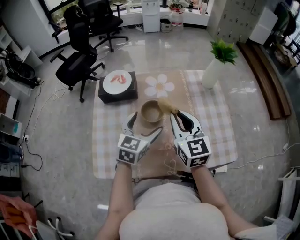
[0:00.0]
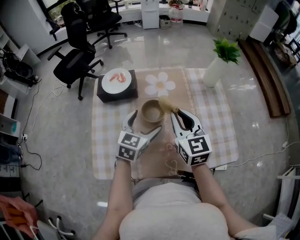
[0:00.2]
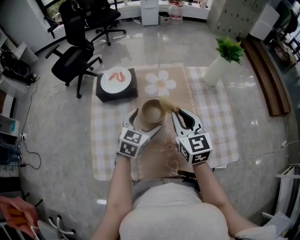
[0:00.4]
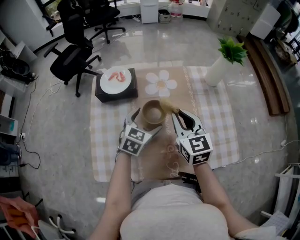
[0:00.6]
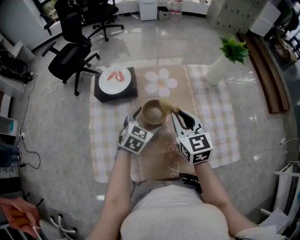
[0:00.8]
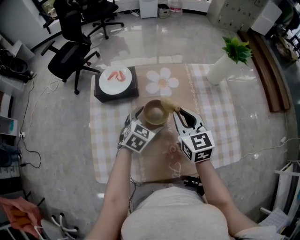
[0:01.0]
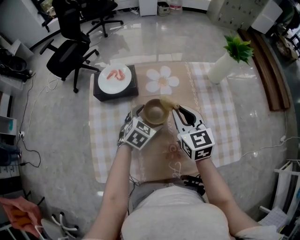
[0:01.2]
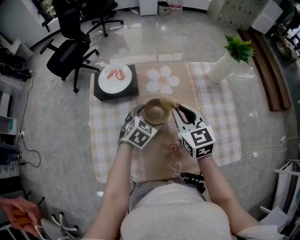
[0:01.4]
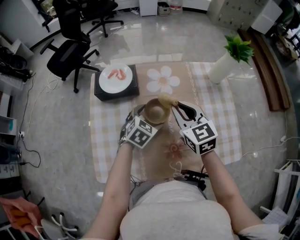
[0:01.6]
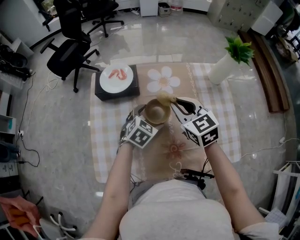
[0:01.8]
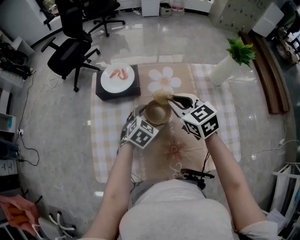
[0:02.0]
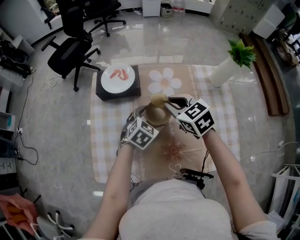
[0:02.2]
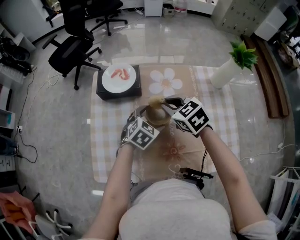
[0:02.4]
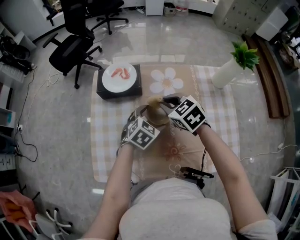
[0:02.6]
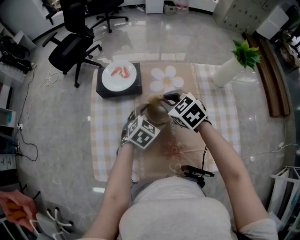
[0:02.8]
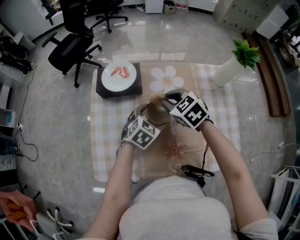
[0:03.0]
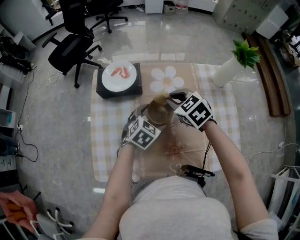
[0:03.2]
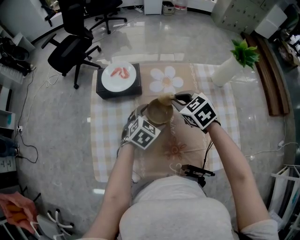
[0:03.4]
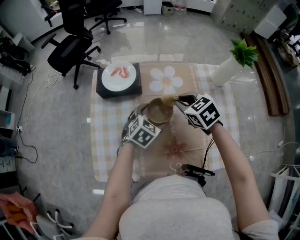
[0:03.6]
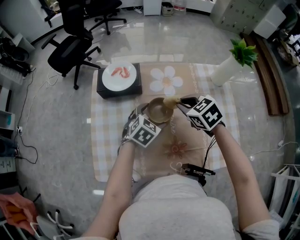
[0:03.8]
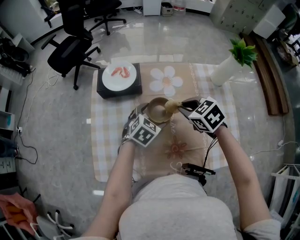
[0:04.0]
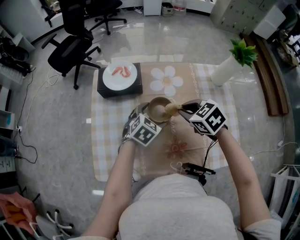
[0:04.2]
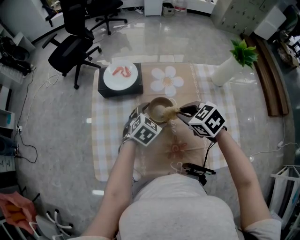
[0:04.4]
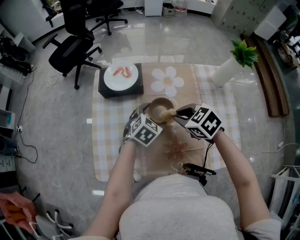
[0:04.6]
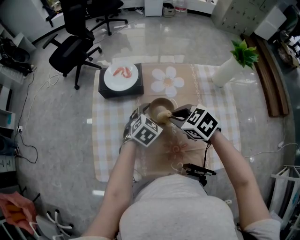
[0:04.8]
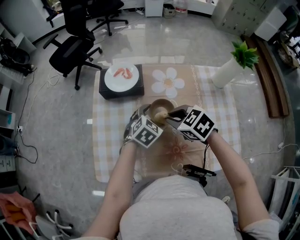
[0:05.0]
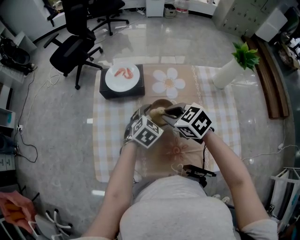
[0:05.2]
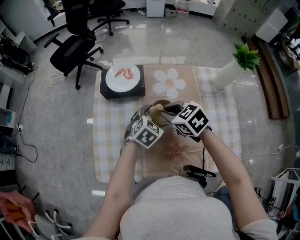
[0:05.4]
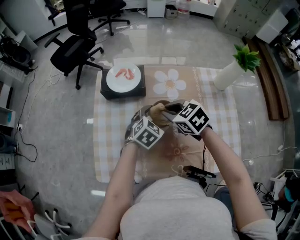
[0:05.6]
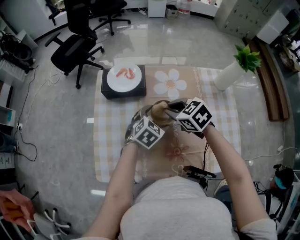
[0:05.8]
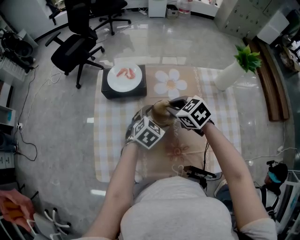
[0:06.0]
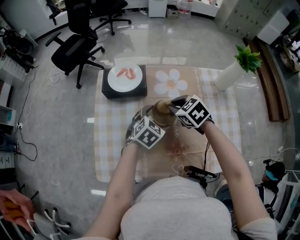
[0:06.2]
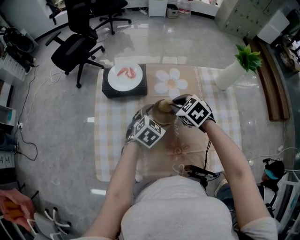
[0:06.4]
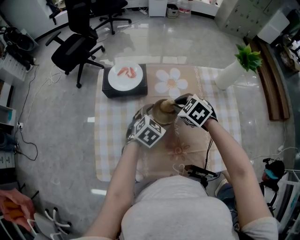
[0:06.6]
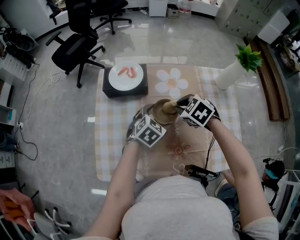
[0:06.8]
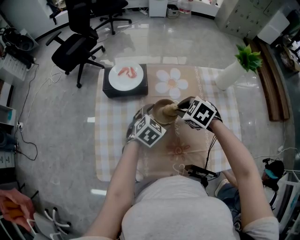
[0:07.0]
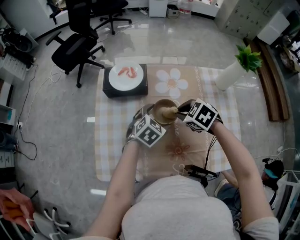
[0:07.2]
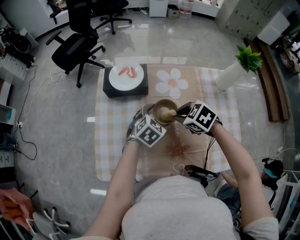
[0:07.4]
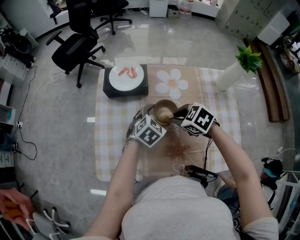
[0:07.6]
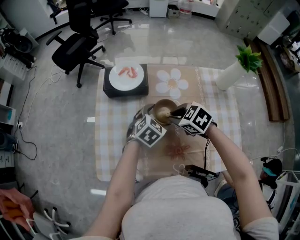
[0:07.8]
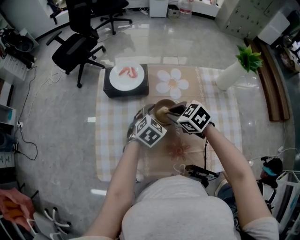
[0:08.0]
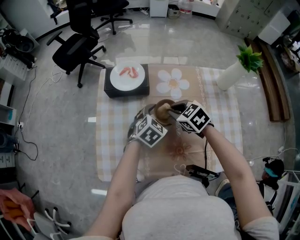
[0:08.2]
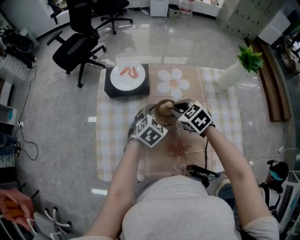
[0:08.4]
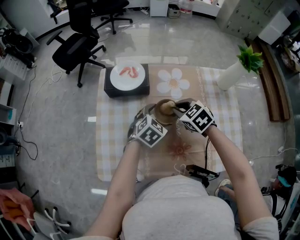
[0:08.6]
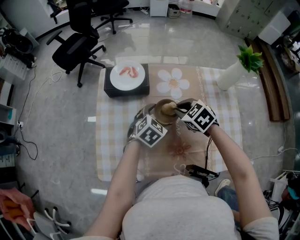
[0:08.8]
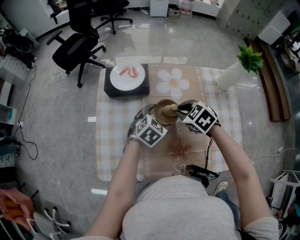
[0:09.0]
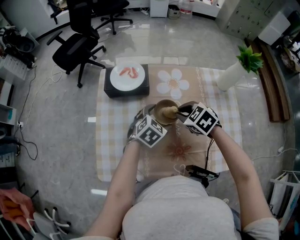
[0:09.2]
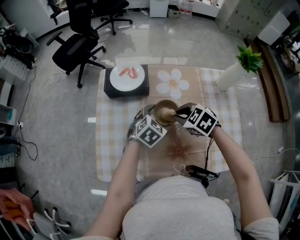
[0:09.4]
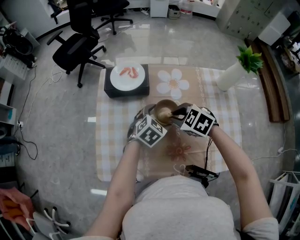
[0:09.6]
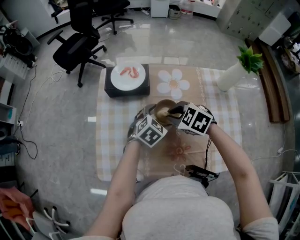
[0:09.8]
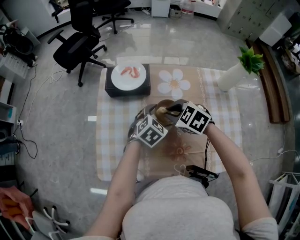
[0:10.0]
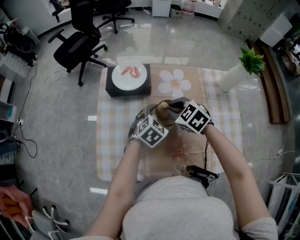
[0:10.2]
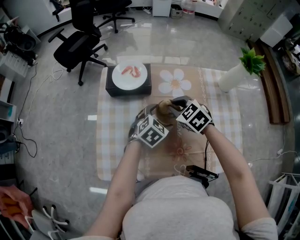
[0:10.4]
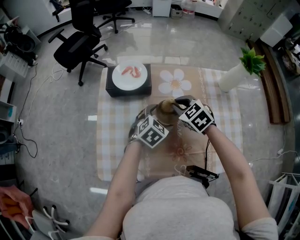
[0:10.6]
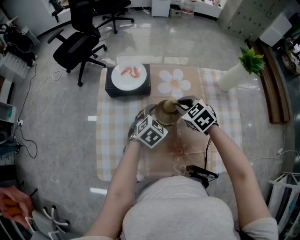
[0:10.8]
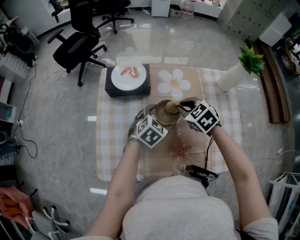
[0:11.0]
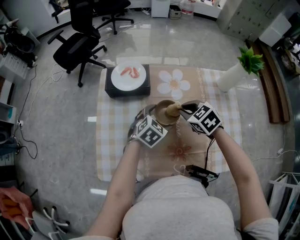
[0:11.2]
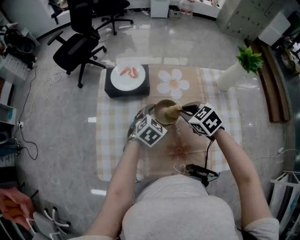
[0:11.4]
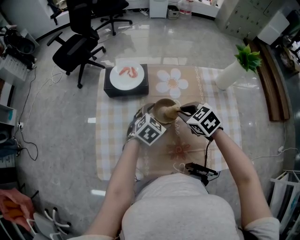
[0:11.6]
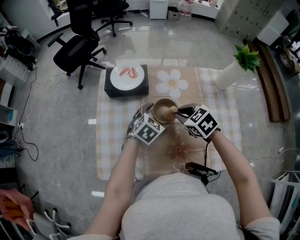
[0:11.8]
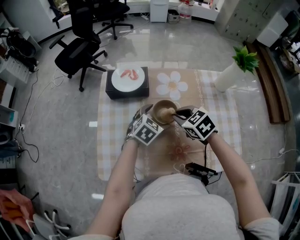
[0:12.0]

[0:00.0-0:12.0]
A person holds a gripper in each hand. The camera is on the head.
0:00.0 to 0:01.6: The left gripper heads downward and forward, covering approximately 15 cm, and rotates some 30 degrees, while the right gripper shifts some 10 cm forward and downward.
0:01.6 to 0:03.0: The right gripper is displaced to the left and downward by roughly 5 cm, and changes its angle by about 30 degrees.
0:03.0 to 0:04.4: The right gripper travels backward by approximately 5 cm.
0:04.4 to 0:06.0: The right gripper moves forward, roughly 5 cm.
0:06.0 to 0:07.6: The right gripper travels backward by some 5 cm.
0:07.6 to 0:10.4: The grippers stay close to where they were, moving slightly.
0:10.4 to 0:12.0: The right gripper ends up roughly 5 cm from where it was.

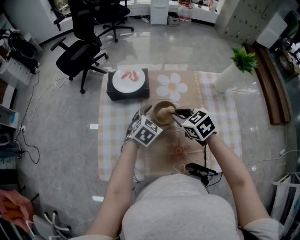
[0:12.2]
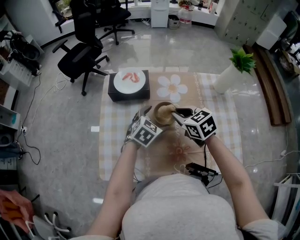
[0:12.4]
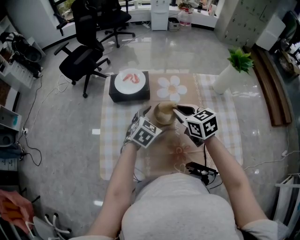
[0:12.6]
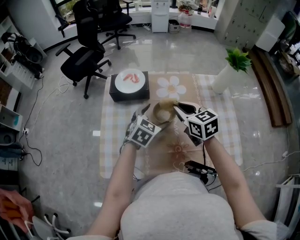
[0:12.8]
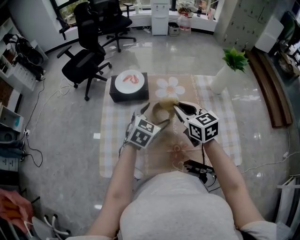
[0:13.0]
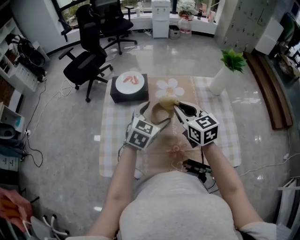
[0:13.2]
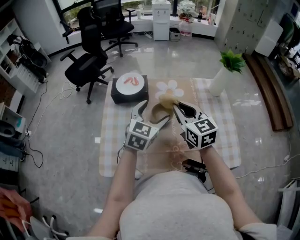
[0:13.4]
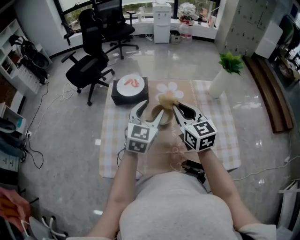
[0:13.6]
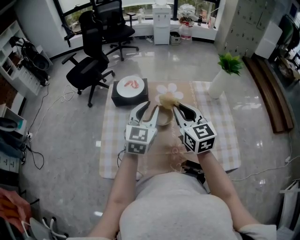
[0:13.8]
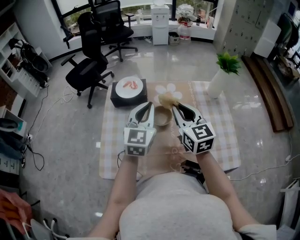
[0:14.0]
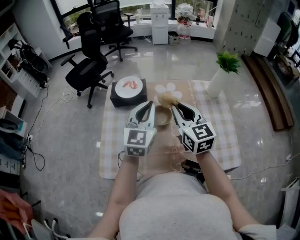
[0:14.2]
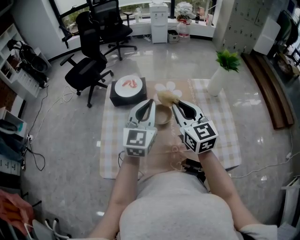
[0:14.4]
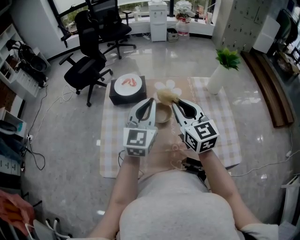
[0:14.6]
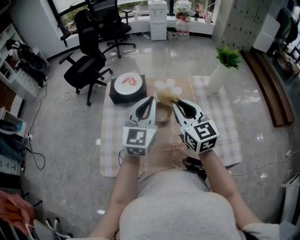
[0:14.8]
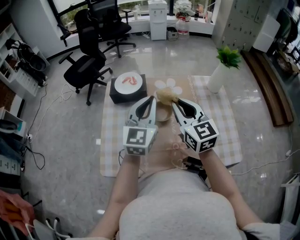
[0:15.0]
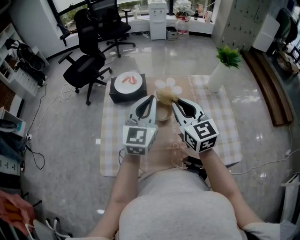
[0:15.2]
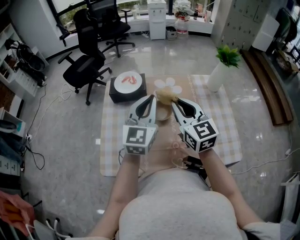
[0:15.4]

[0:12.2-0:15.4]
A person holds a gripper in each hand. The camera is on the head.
0:12.2 to 0:13.8: Both grippers move upward, some 15 cm. The left gripper angles its fingers upward, by about 30 degrees, and closes; the right gripper points its fingers roughly 40 degrees further upward.
0:13.8 to 0:15.4: The grippers make only small movements.

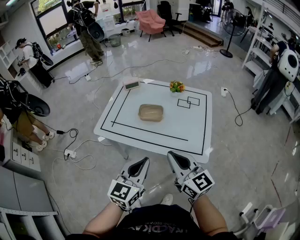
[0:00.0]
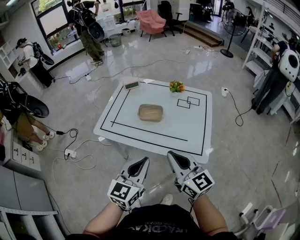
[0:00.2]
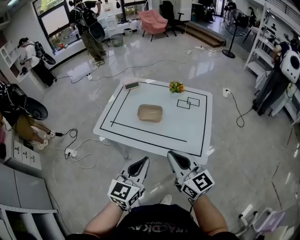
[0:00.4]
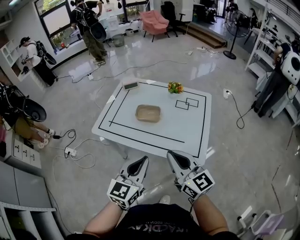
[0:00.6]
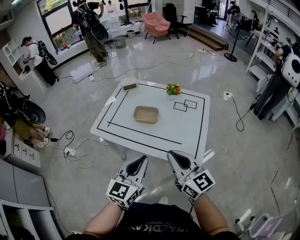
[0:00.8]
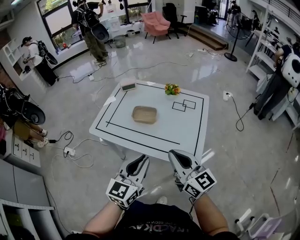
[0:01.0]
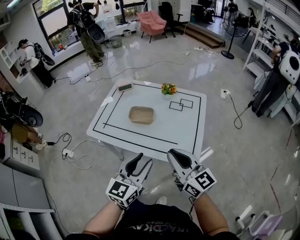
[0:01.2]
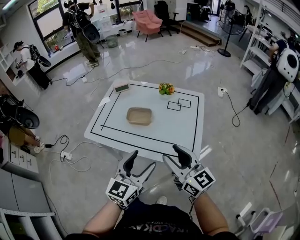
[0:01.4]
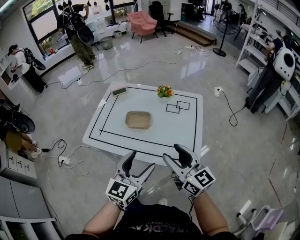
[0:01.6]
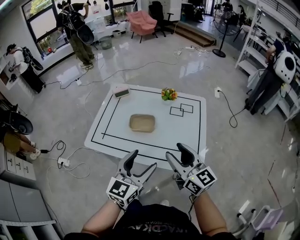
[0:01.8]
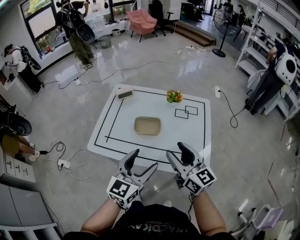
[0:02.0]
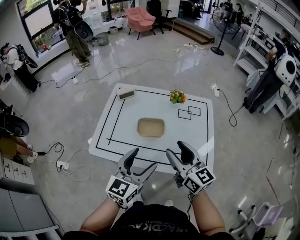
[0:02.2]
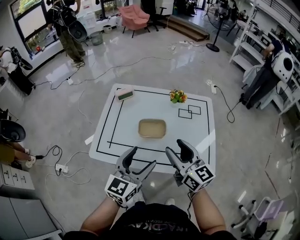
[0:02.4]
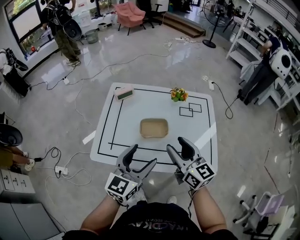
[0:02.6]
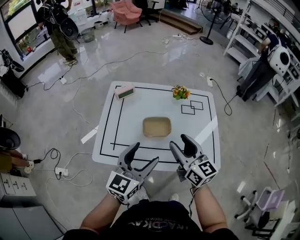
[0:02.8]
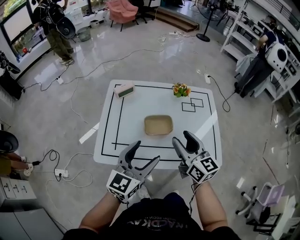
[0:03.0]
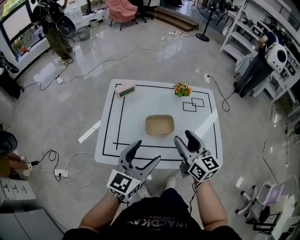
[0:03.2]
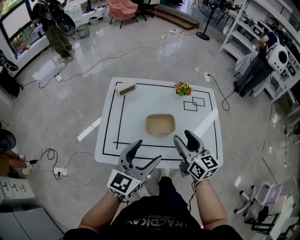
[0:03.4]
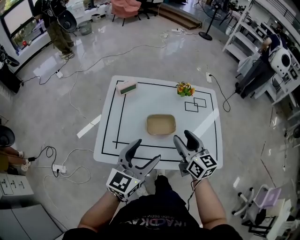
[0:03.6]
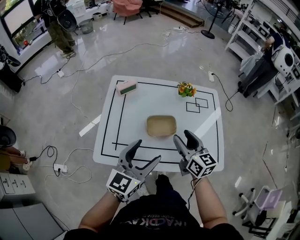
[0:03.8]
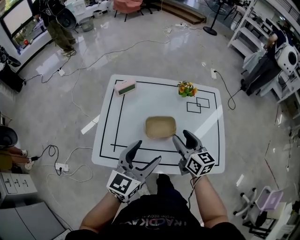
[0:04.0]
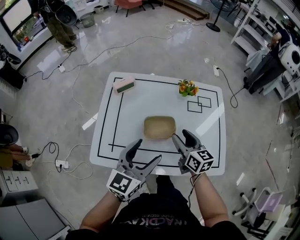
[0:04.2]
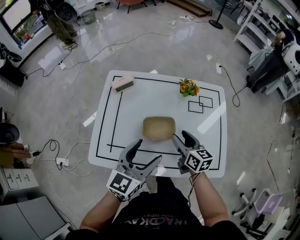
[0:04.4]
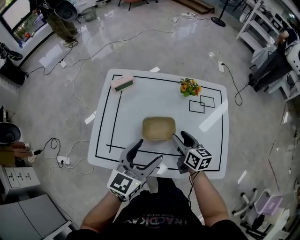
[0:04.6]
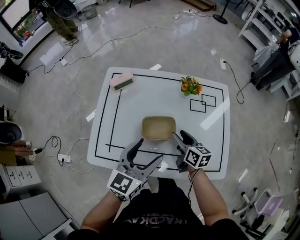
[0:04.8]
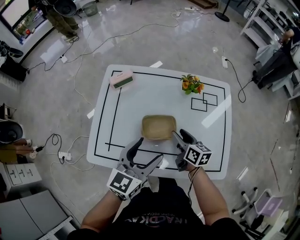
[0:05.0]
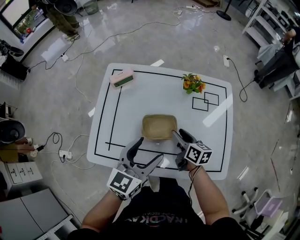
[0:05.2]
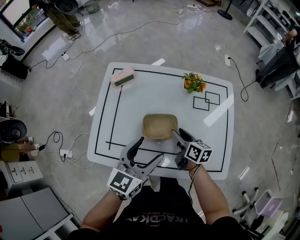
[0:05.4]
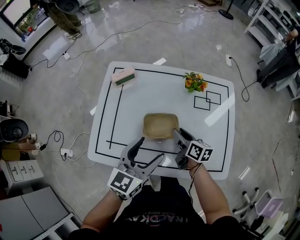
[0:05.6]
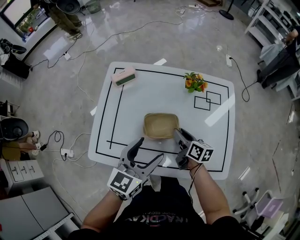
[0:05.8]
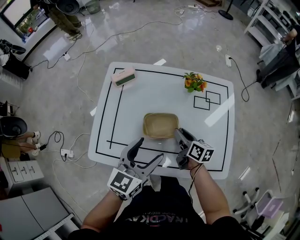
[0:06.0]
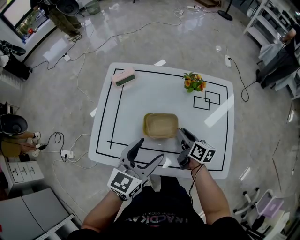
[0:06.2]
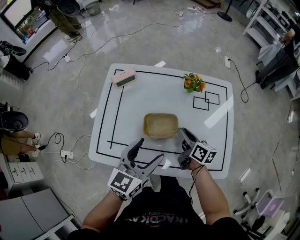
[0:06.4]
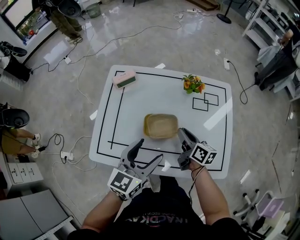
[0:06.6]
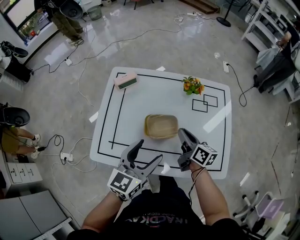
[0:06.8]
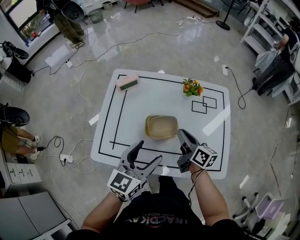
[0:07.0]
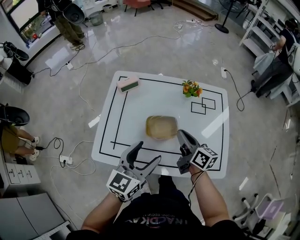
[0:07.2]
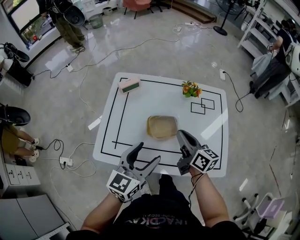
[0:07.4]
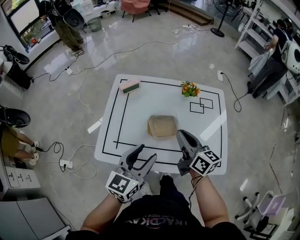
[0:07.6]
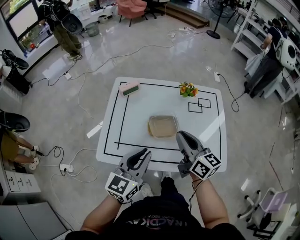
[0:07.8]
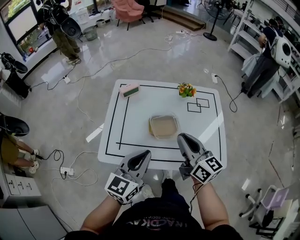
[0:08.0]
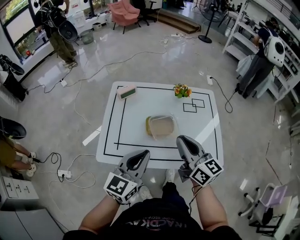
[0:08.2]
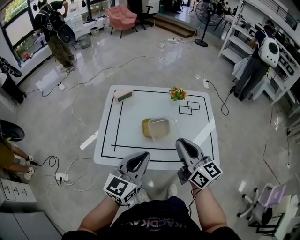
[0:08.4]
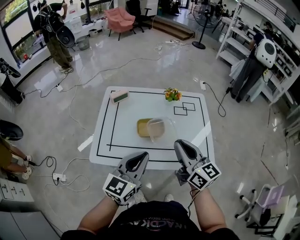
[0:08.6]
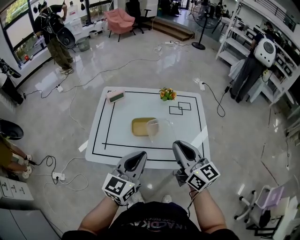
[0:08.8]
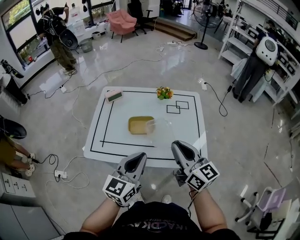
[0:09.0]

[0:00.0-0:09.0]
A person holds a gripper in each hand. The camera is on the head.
0:00.0 to 0:01.6: The grippers both shift to the right and forward by about 10 cm. The left gripper opens its fingers; the right gripper opens.
0:01.6 to 0:03.0: Both grippers travel together to the left and forward, some 20 cm. The right gripper rotates roughly 20 degrees.
0:03.0 to 0:04.4: The right gripper moves downward and forward, roughly 15 cm, and swivels roughly 20 degrees. Meanwhile the left gripper travels forward by approximately 5 cm.
0:04.4 to 0:06.0: The right gripper shifts some 5 cm downward, and turns by roughly 20 degrees.
0:06.0 to 0:07.6: The right gripper heads upward, covering approximately 15 cm, turns by approximately 20 degrees, and closes up. The left gripper moves backward, approximately 5 cm.
0:07.6 to 0:09.0: The right gripper heads backward, upward and to the right, covering about 20 cm; the left gripper shifts about 15 cm to the right and backward, and closes its fingers.
